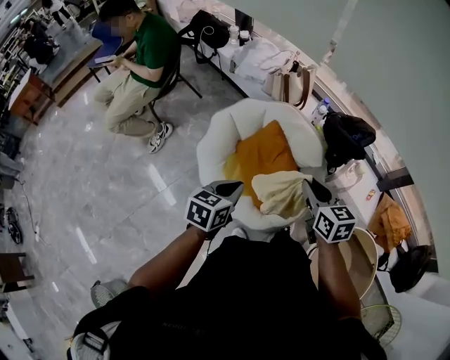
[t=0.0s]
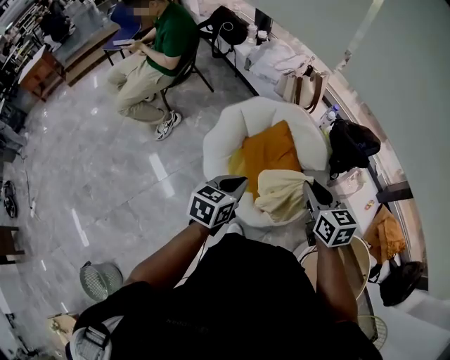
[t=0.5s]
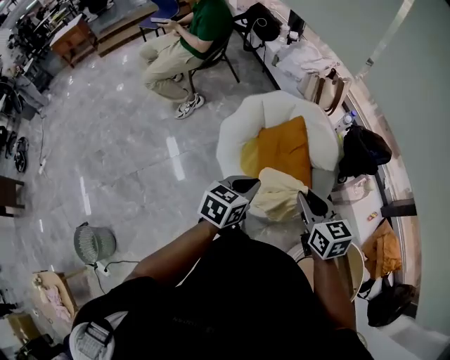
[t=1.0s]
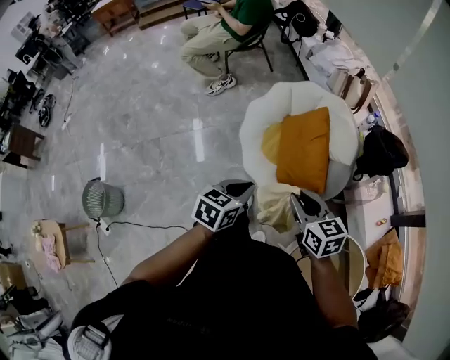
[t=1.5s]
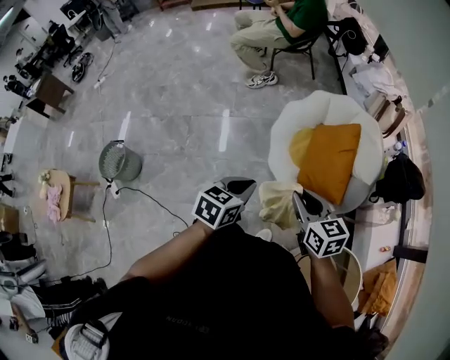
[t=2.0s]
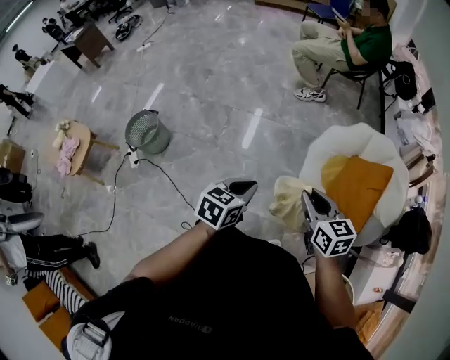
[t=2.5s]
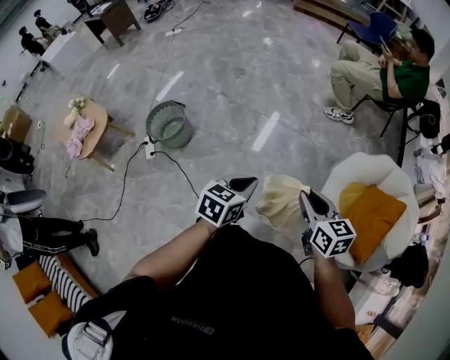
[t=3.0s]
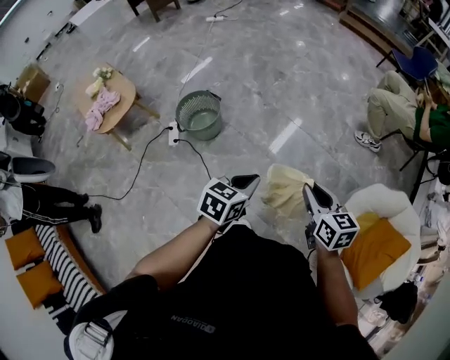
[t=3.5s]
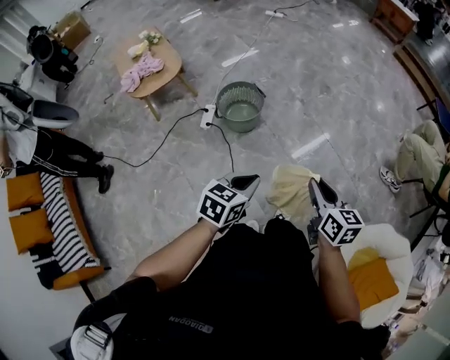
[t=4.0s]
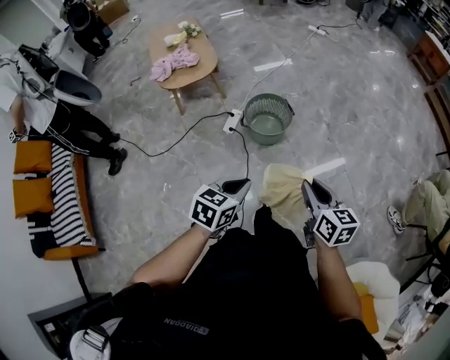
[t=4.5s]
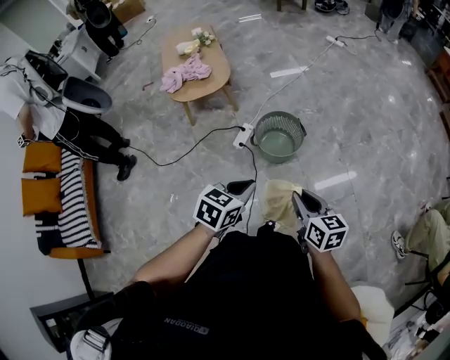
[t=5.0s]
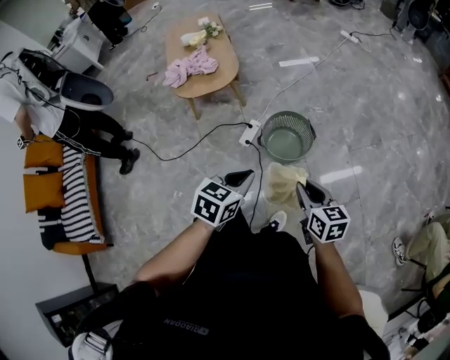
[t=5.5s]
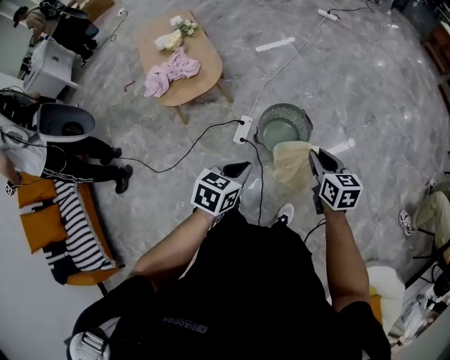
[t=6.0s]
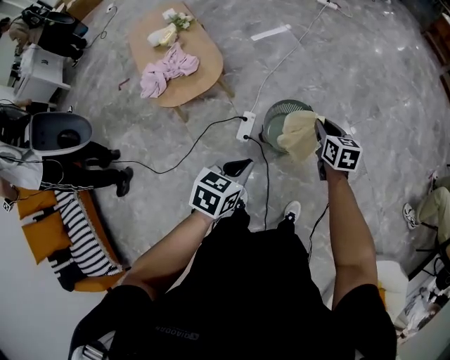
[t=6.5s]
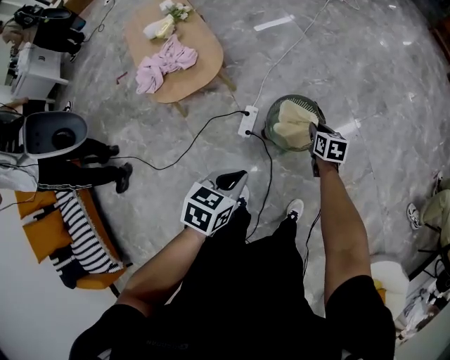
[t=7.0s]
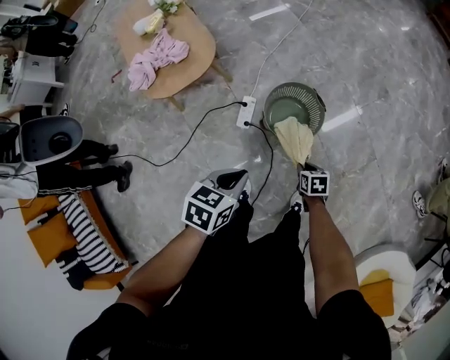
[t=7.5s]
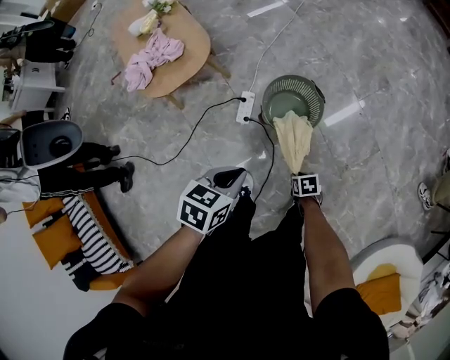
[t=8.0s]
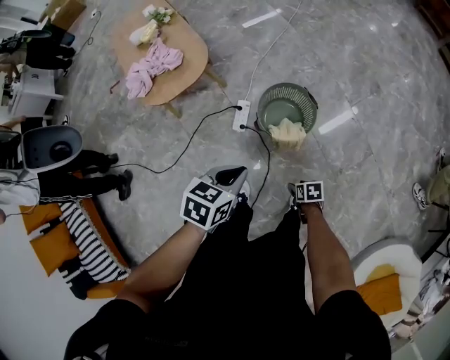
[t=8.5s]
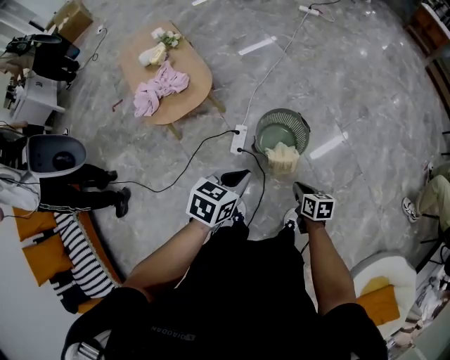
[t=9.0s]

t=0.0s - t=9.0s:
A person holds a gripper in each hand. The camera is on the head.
t=0.0s - t=2.0s: The left gripper moves some 35 cm, and turns by some 40 degrees. The right gripper ends up some 30 cm from where it was, and swivels about 50 degrees.
t=2.0s - t=4.5s: The pair of grippers is taken about 80 cm. The left gripper changes its angle by roughly 70 degrees. The right gripper swivels about 60 degrees.
t=4.5s - t=7.0s: The right gripper moves forward and downward, about 50 cm, and swivels roughly 30 degrees, while the left gripper heads forward and to the left, covering roughly 35 cm.
t=7.0s - t=9.0s: The right gripper heads backward, covering some 20 cm, and opens and closes again.

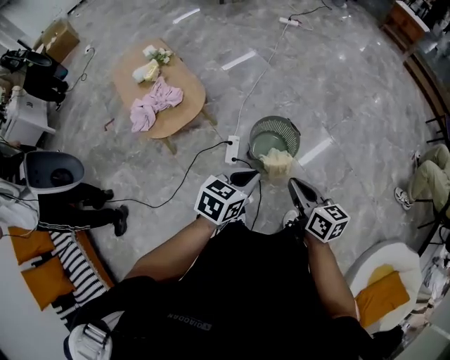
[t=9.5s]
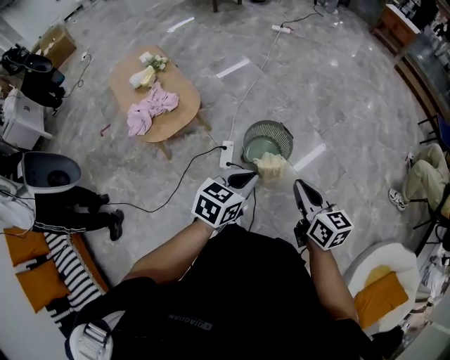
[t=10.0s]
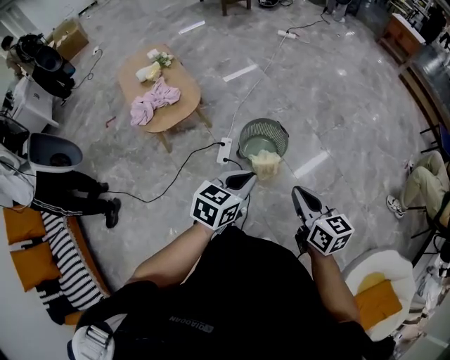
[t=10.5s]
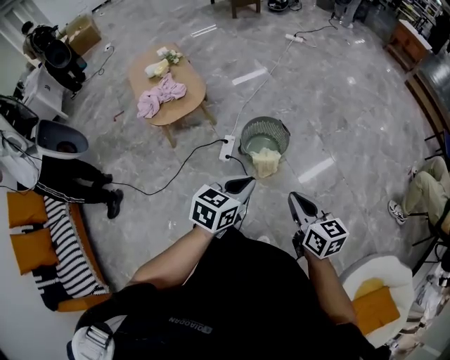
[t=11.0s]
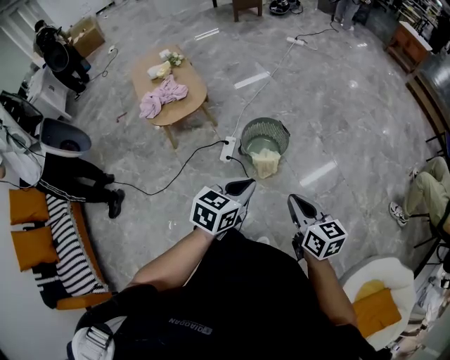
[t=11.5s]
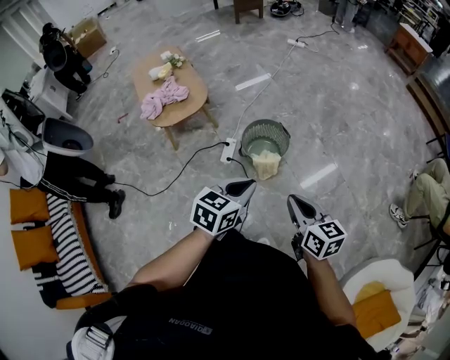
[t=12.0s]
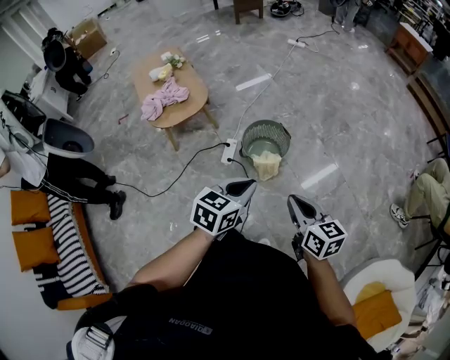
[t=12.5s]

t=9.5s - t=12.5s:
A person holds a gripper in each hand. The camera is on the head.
t=9.5s - t=11.0s: The two grippers go roughly 20 cm backward and to the right.
t=11.0s - t=12.5s: The grippers stay close to where they were, moving slightly.

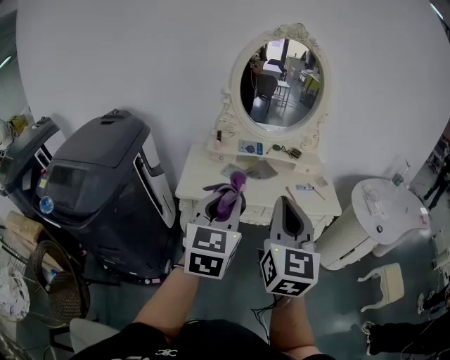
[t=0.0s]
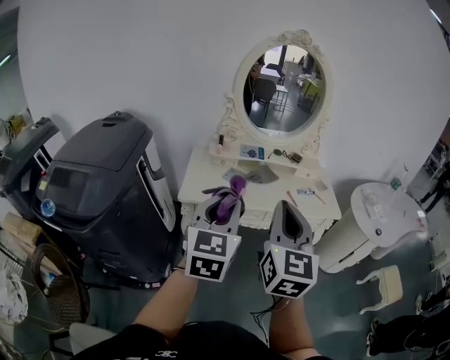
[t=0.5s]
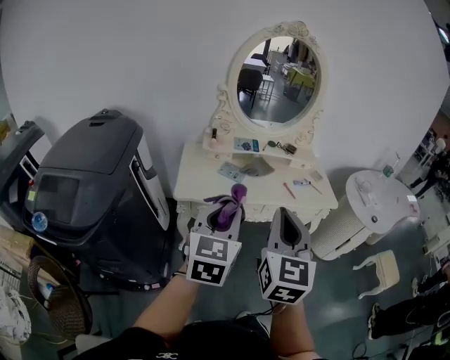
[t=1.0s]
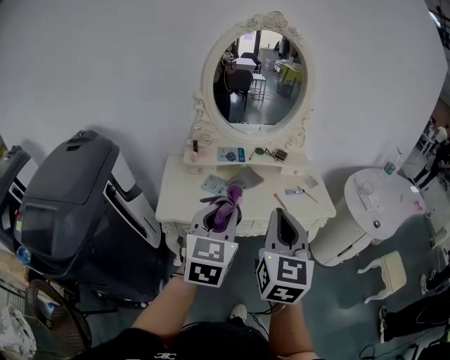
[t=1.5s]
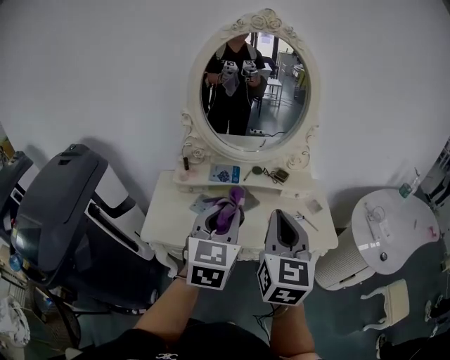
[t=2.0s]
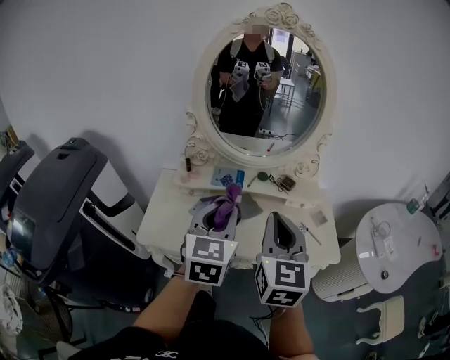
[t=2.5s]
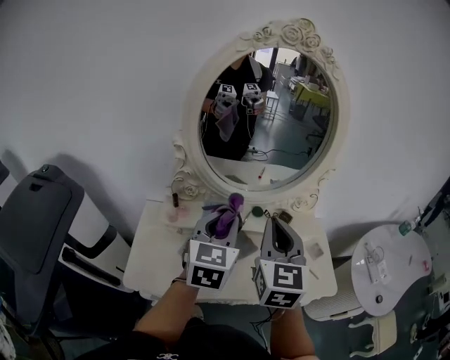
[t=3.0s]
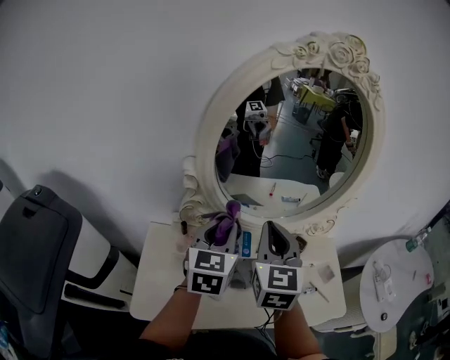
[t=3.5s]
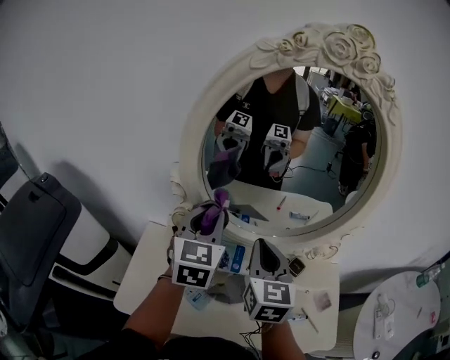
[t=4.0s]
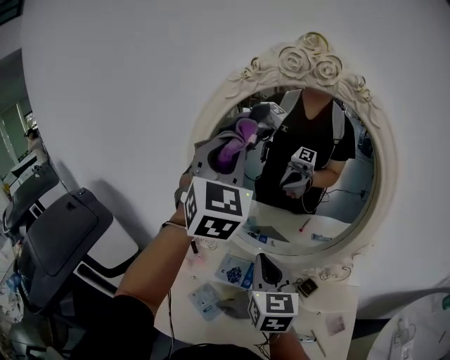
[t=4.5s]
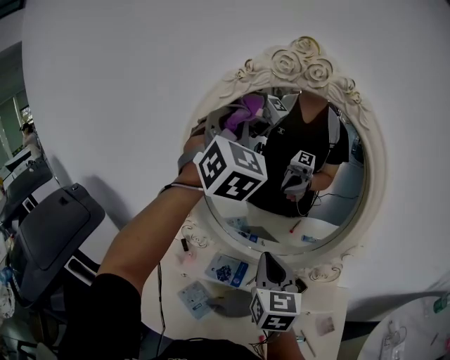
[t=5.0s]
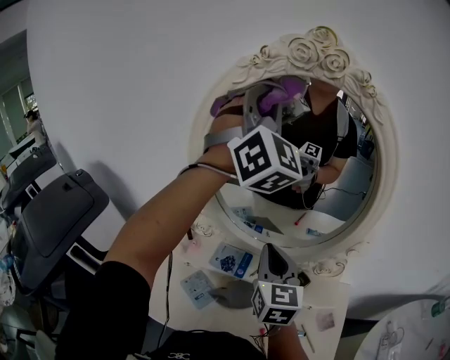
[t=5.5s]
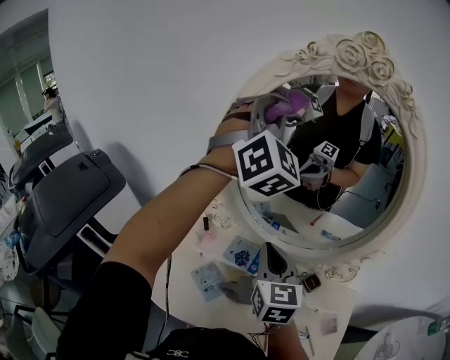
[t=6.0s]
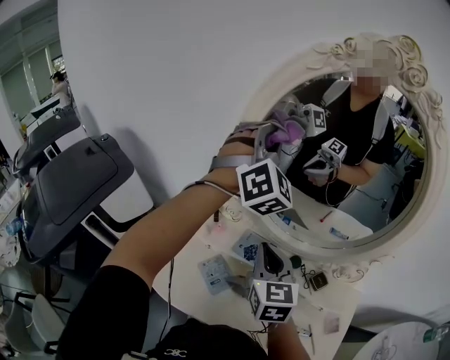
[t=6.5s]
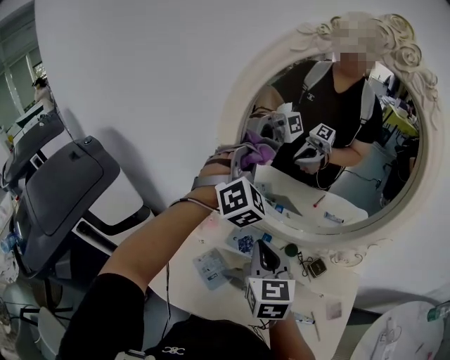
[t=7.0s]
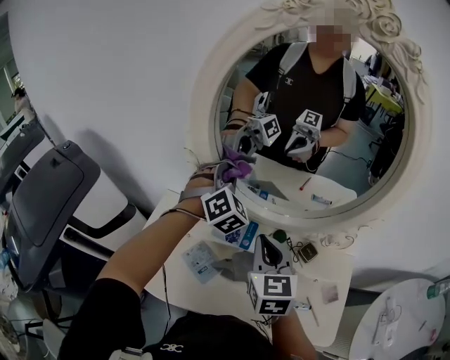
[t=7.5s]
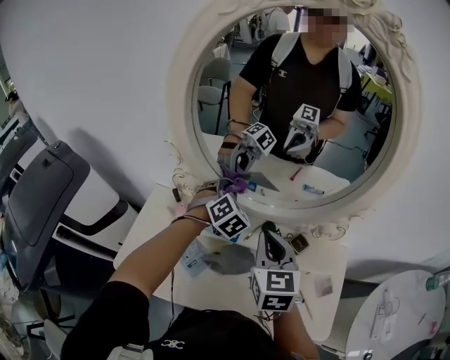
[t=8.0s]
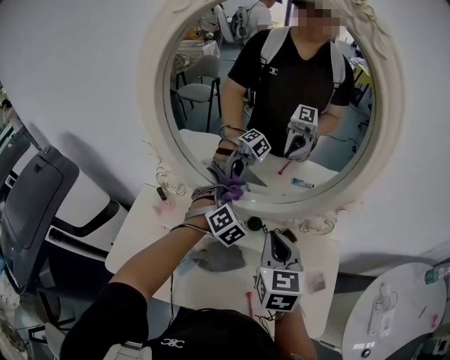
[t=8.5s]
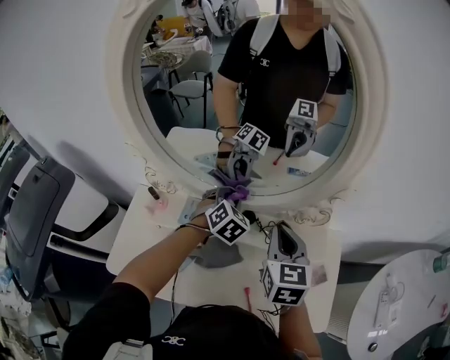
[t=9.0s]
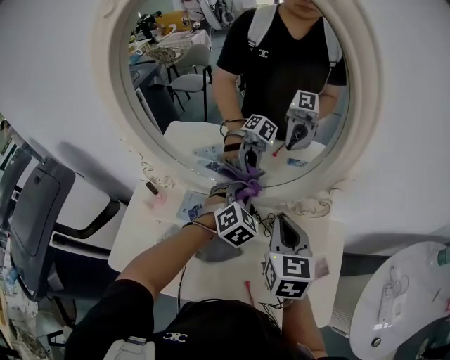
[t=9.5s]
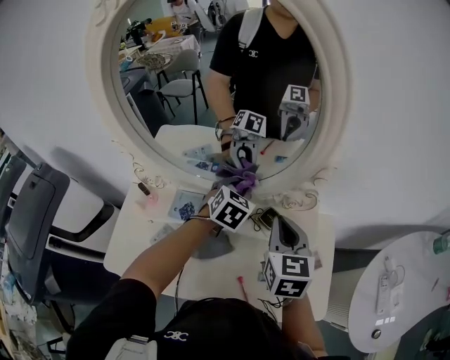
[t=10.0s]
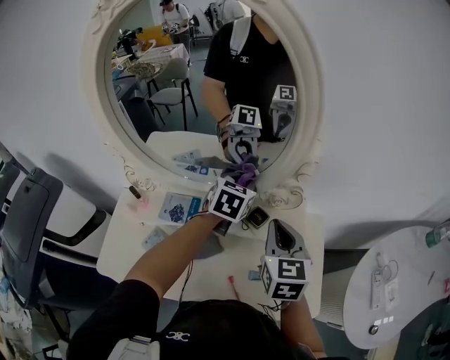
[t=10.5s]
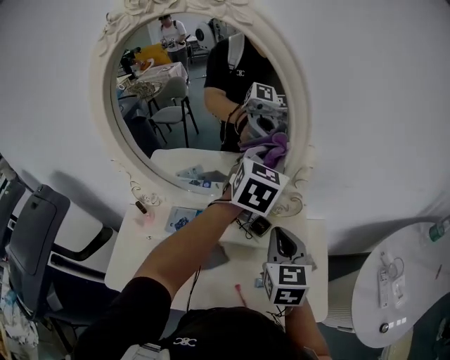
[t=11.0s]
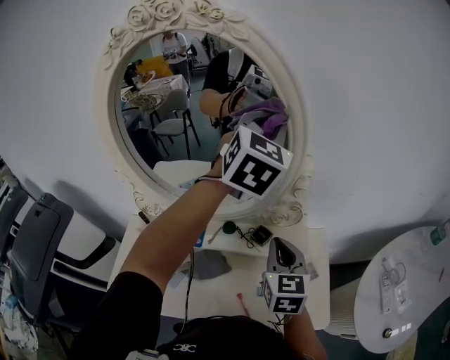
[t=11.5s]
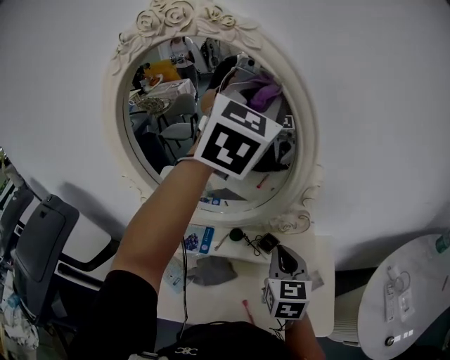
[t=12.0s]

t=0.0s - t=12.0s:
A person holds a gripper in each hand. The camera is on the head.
t=0.0s - t=2.0s: Both grippers move forward, roughly 25 cm.
t=2.0s - t=4.0s: Both grippers move forward, approximately 40 cm.
t=4.0s - t=6.0s: The left gripper shifts some 25 cm upward, and rolls clockwise, seen from behind, by roughly 50 degrees.
t=6.0s - t=8.0s: The right gripper goes about 10 cm downward and to the right, while the left gripper goes approximately 40 cm downward, and tips its fingers downward by about 50 degrees.
t=8.0s - t=10.0s: The two grippers go some 15 cm to the right. The left gripper turns by roughly 20 degrees.
t=10.0s - t=12.0s: The left gripper goes about 40 cm upward, and angles its fingers upward, by some 40 degrees.

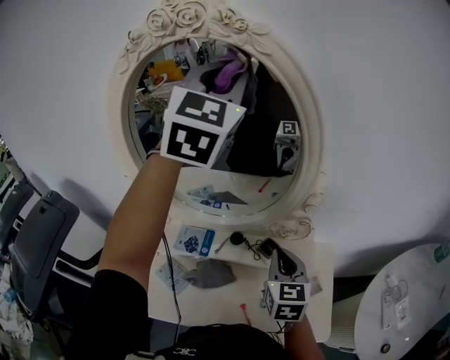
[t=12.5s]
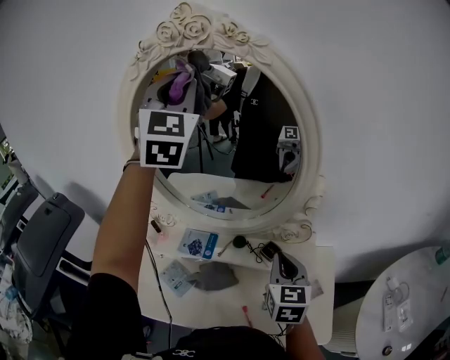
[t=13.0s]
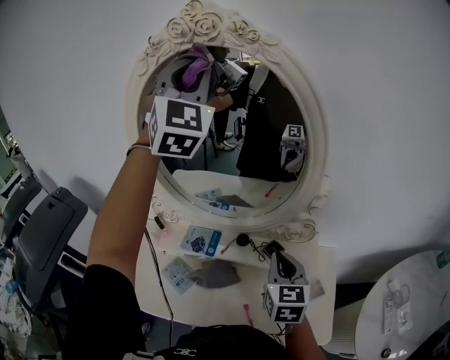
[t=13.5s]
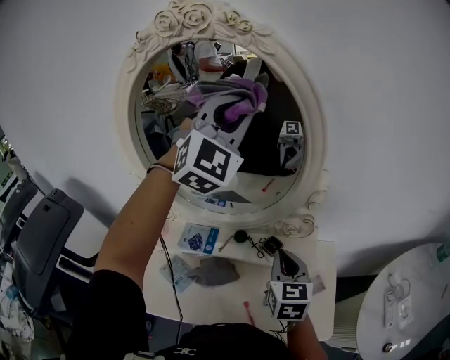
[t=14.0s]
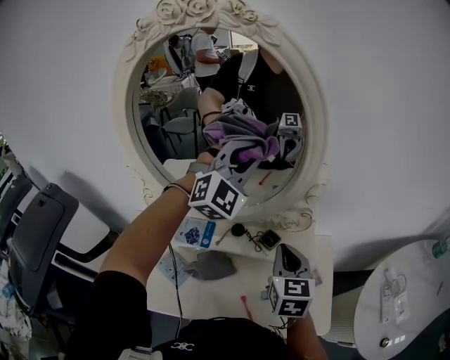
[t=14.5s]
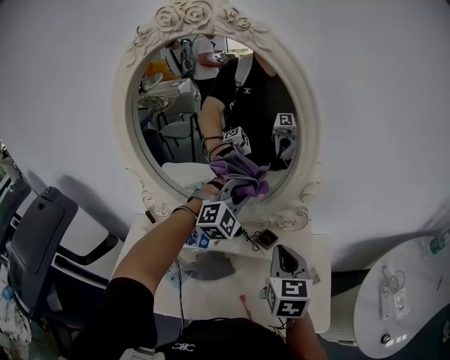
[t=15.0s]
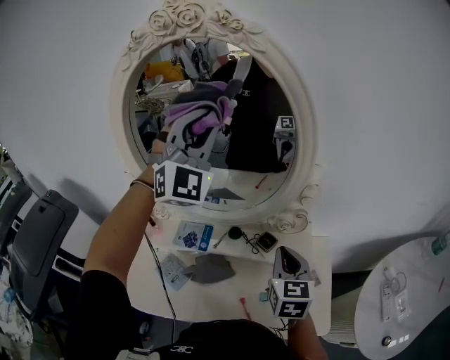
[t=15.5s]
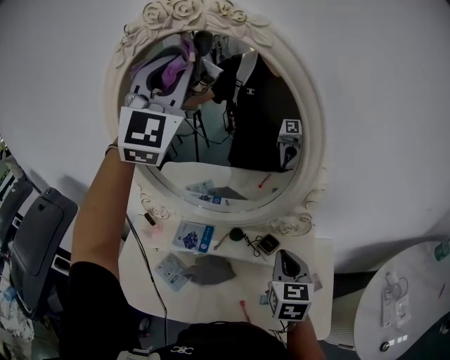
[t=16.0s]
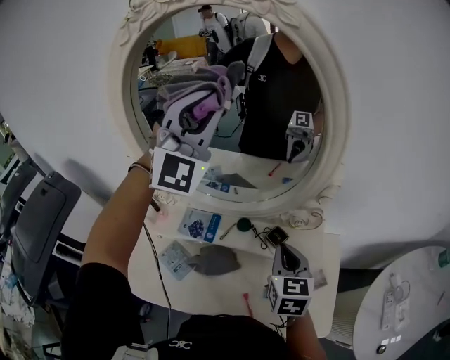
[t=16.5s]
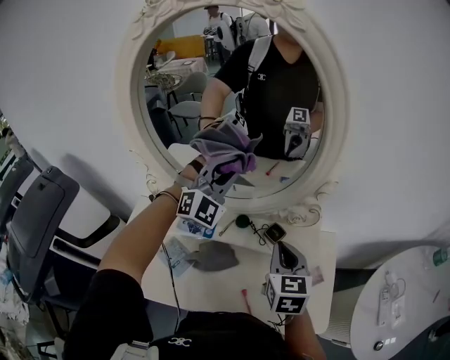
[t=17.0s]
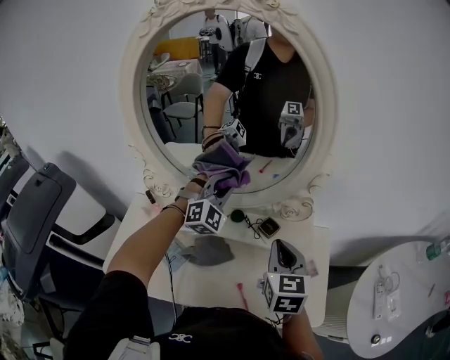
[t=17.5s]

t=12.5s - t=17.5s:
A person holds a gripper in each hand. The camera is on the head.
t=12.5s - t=15.0s: The left gripper shifts about 35 cm downward, and turns by roughly 40 degrees.
t=15.0s - t=17.5s: The left gripper is displaced to the left by roughly 5 cm, and goes upward and returns, approximately 35 cm each way.
